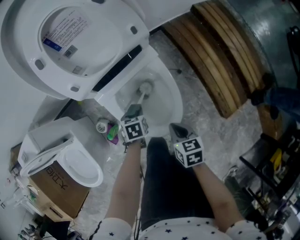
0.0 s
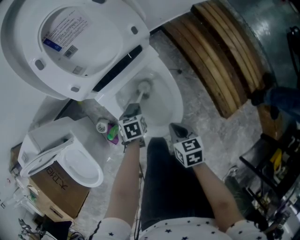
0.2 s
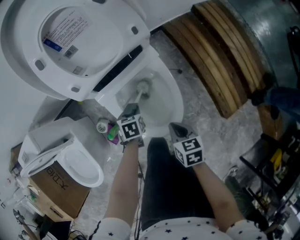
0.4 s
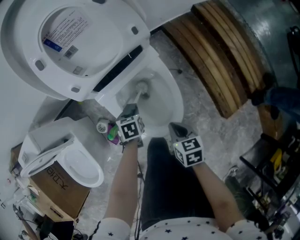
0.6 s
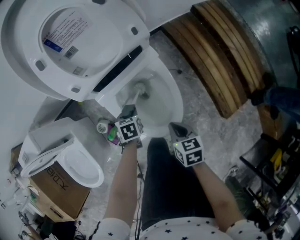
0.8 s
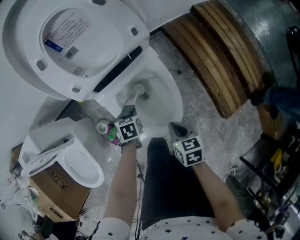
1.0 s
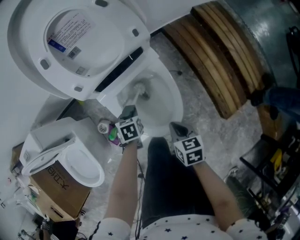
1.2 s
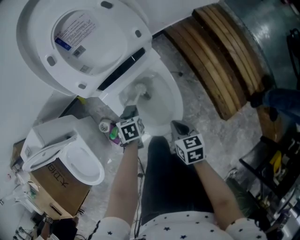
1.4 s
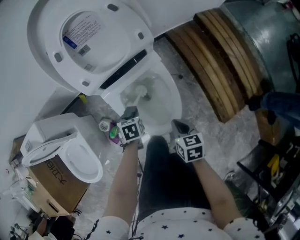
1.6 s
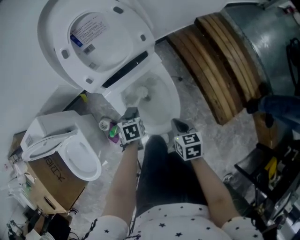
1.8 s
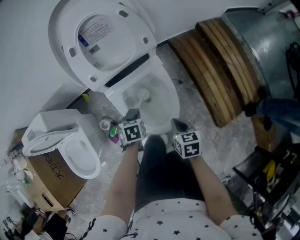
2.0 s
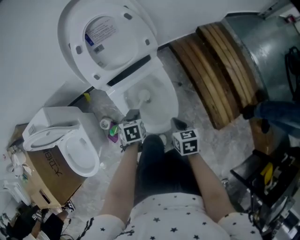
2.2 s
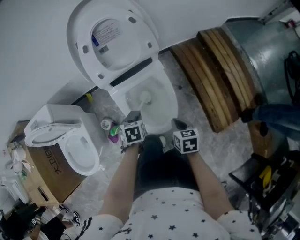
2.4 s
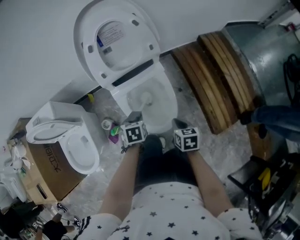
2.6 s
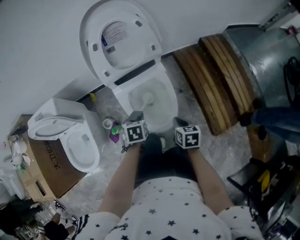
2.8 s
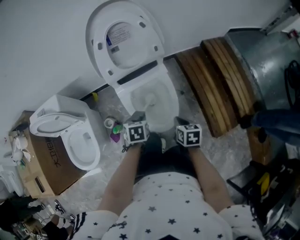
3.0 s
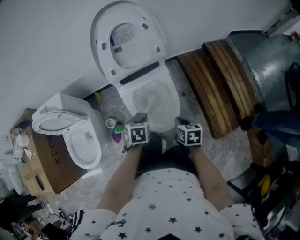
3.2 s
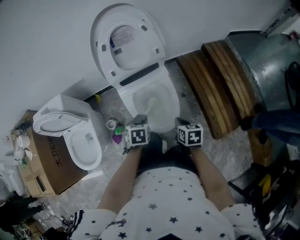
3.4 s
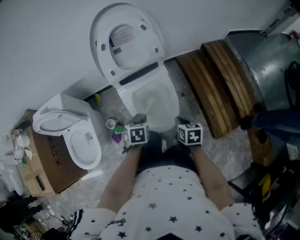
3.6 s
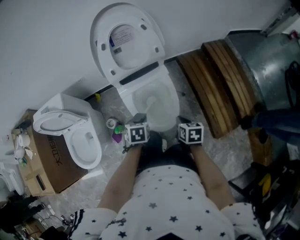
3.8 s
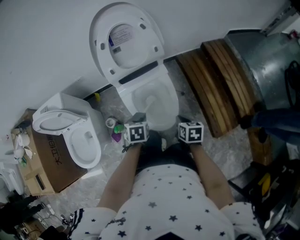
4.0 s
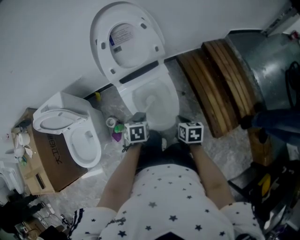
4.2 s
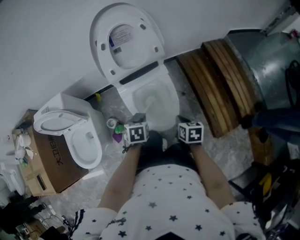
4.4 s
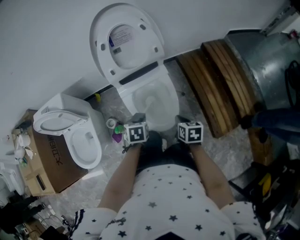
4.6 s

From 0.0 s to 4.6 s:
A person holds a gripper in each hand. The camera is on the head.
From 0.0 s to 1.6 s: The left gripper is displaced upward by some 5 cm.
From 1.6 s to 3.0 s: The right gripper travels upward by roughly 5 cm; the left gripper travels upward and backward by about 20 cm.
From 3.0 s to 4.6 s: The grippers stay close to where they were, moving slightly.

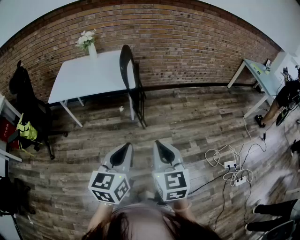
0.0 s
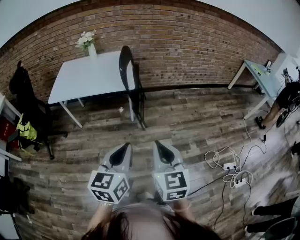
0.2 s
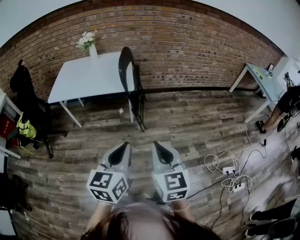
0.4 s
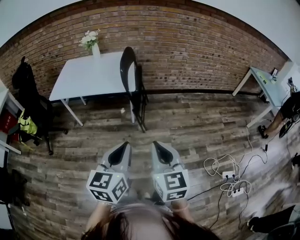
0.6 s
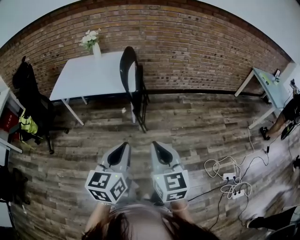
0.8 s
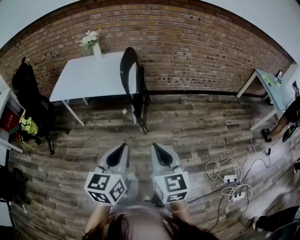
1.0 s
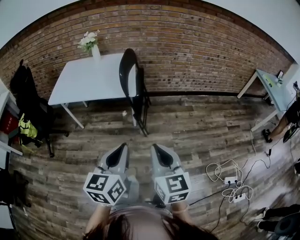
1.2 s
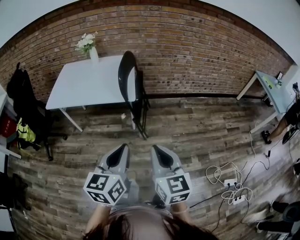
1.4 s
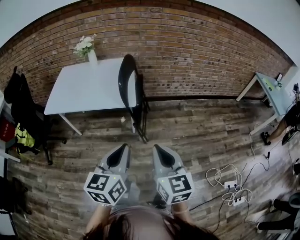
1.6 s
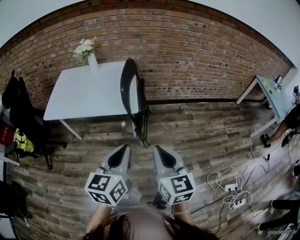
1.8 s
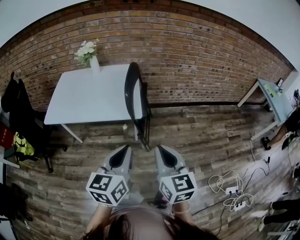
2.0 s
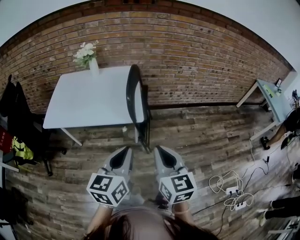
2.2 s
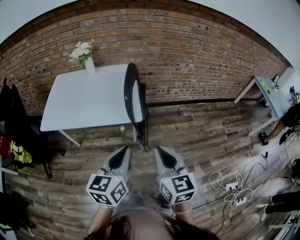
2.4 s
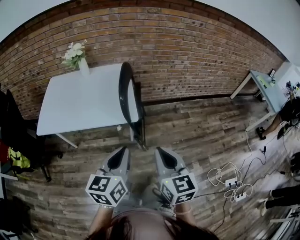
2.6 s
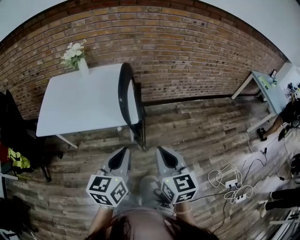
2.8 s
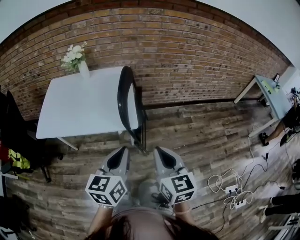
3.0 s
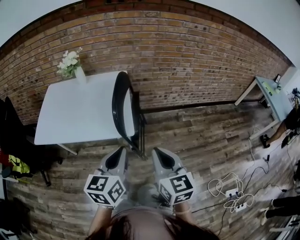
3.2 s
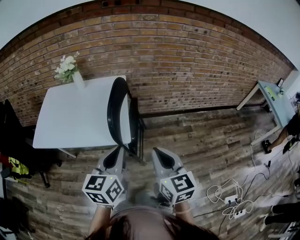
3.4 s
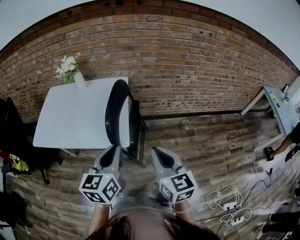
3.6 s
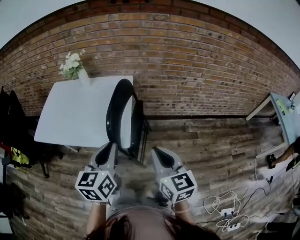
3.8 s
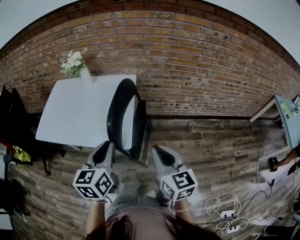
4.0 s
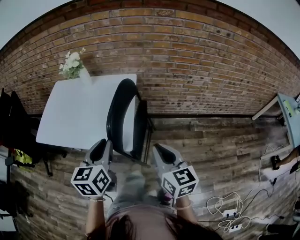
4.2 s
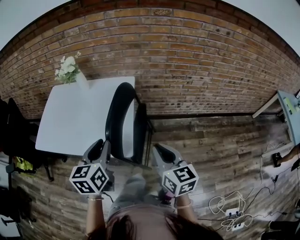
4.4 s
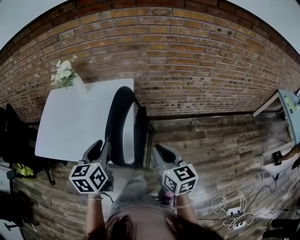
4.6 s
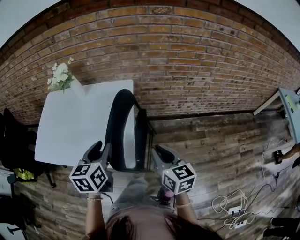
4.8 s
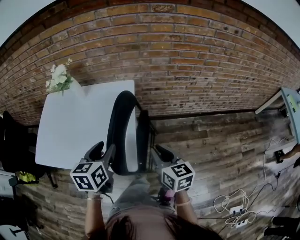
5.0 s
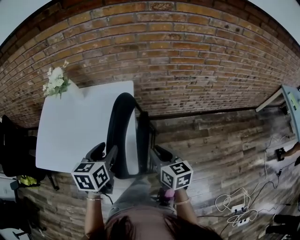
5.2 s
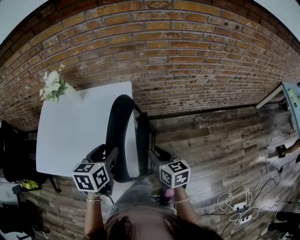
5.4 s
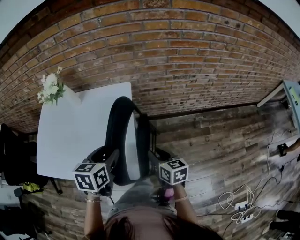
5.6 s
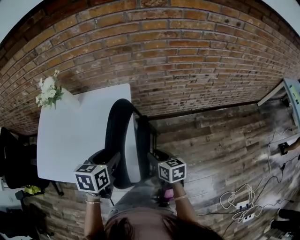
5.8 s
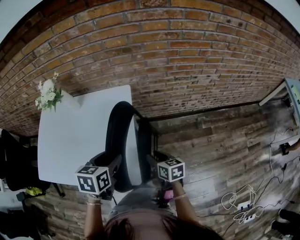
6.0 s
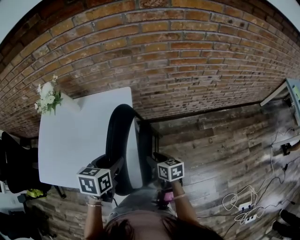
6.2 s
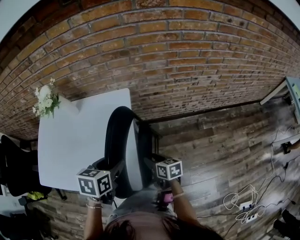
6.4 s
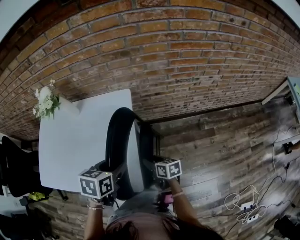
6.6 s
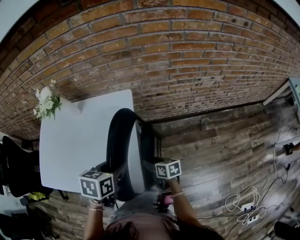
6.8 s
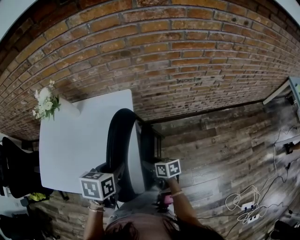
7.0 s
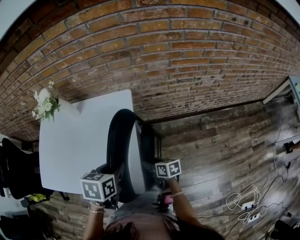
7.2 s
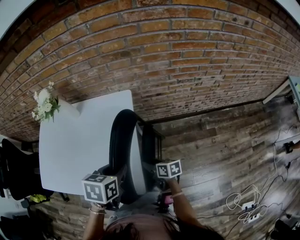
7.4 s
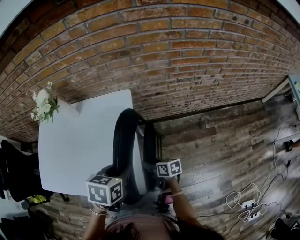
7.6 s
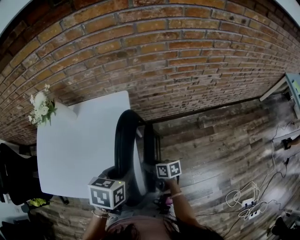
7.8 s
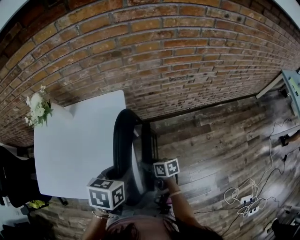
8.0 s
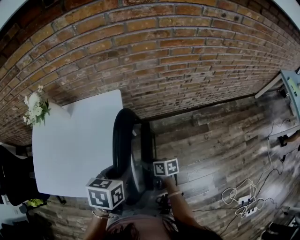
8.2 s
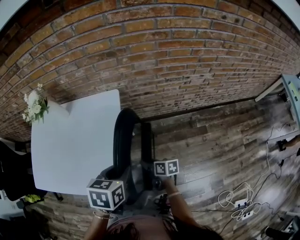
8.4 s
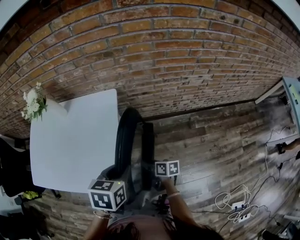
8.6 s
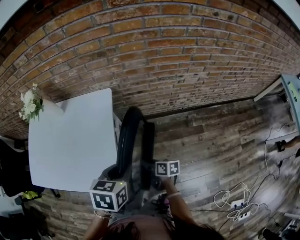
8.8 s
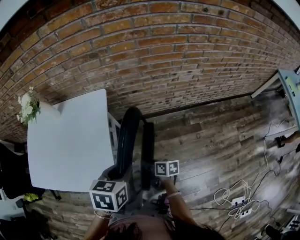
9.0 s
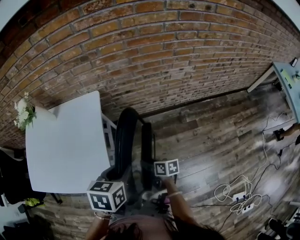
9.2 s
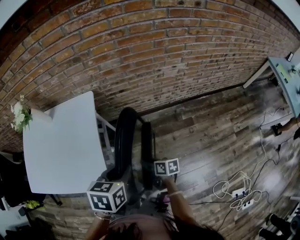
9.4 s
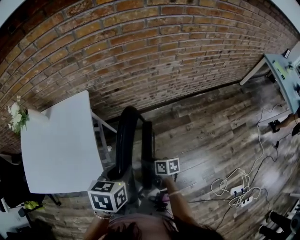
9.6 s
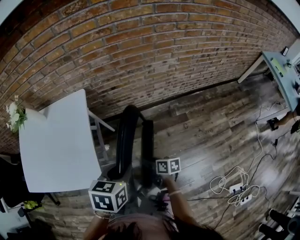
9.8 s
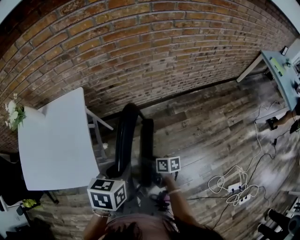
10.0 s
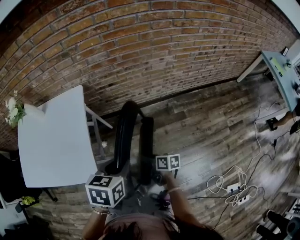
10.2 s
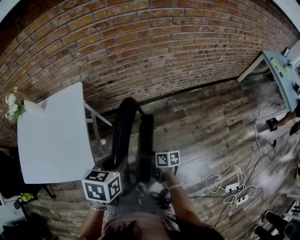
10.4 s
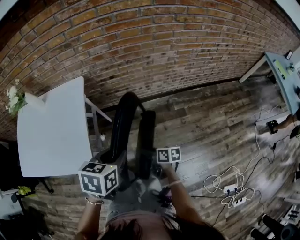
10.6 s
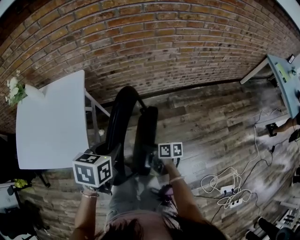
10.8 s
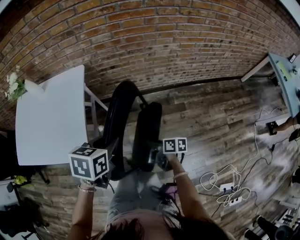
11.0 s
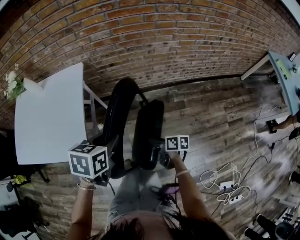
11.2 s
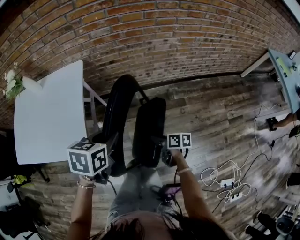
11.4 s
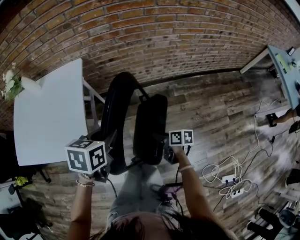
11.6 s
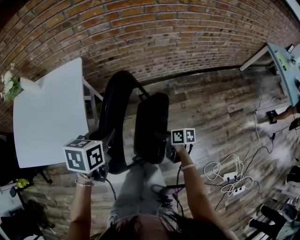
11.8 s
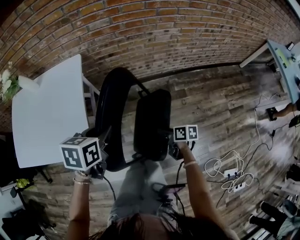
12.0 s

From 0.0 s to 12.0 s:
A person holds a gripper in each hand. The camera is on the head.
From 0.0 s to 1.6 s: The grippers both shift forward by some 15 cm.
From 1.6 s to 3.0 s: Both grippers travel together forward, about 15 cm.
From 3.0 s to 4.4 s: The grippers both shift forward by some 20 cm. The left gripper rotates roughly 20 degrees, and opens up.
From 4.4 s to 6.0 s: The left gripper shifts some 15 cm forward and downward, turns by roughly 30 degrees, and opens up, while the right gripper is displaced downward and forward by roughly 25 cm, rotates approximately 30 degrees, and opens up.
From 6.0 s to 7.6 s: The left gripper closes up, while the right gripper travels downward by about 10 cm, and changes its angle by roughly 20 degrees.
From 7.6 s to 9.0 s: The two grippers go about 10 cm to the right.
From 9.0 s to 10.4 s: The grippers both shift to the right and backward by about 10 cm.
From 10.4 s to 12.0 s: The left gripper goes approximately 5 cm to the left; the right gripper is displaced to the right by some 5 cm.

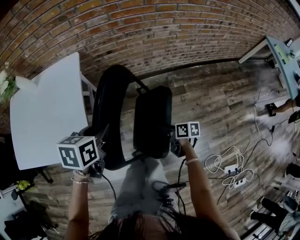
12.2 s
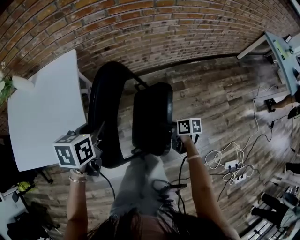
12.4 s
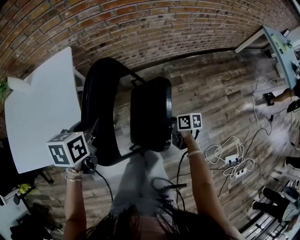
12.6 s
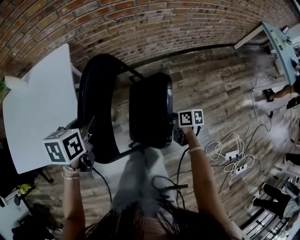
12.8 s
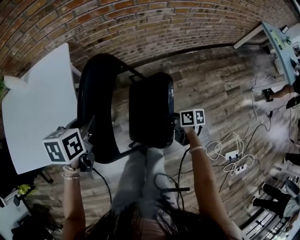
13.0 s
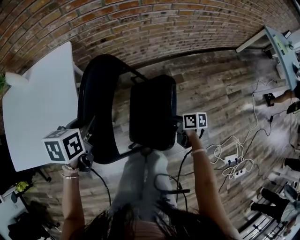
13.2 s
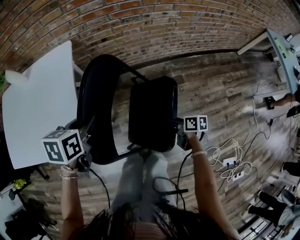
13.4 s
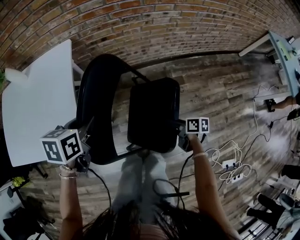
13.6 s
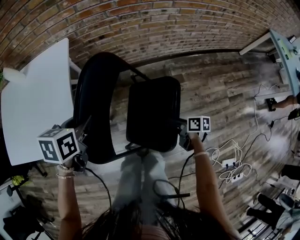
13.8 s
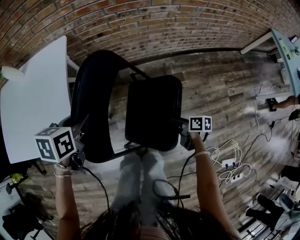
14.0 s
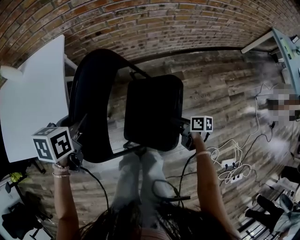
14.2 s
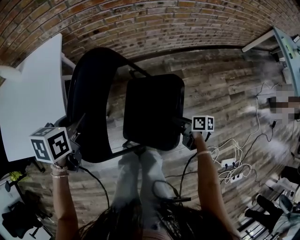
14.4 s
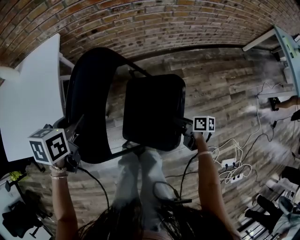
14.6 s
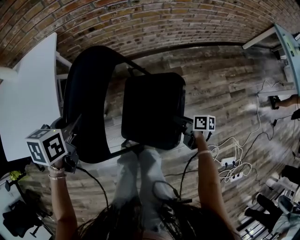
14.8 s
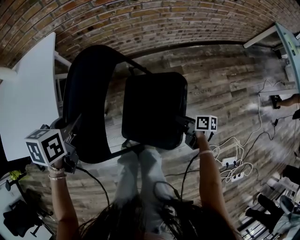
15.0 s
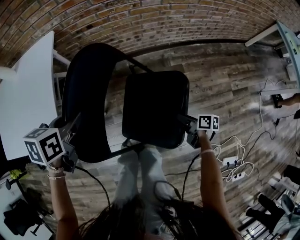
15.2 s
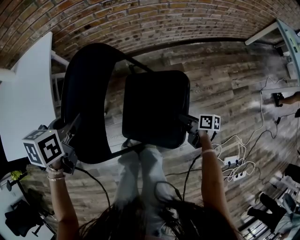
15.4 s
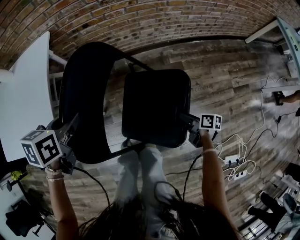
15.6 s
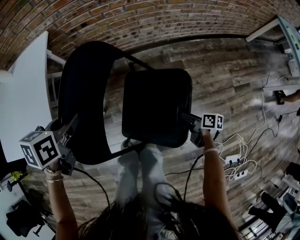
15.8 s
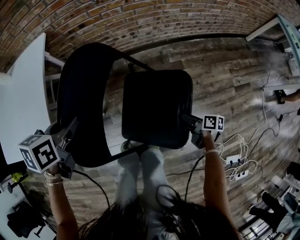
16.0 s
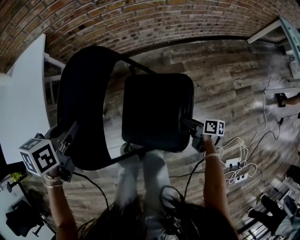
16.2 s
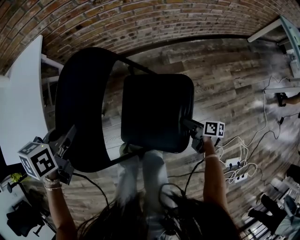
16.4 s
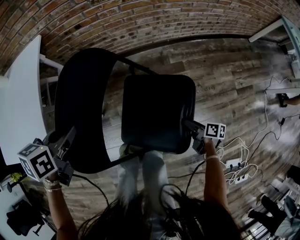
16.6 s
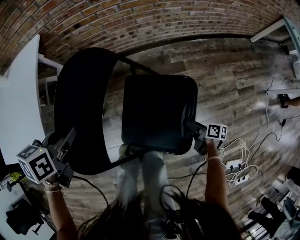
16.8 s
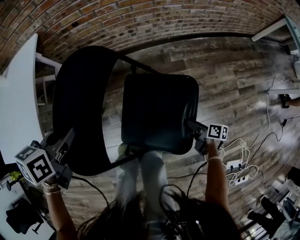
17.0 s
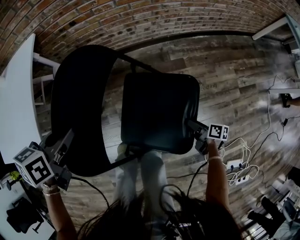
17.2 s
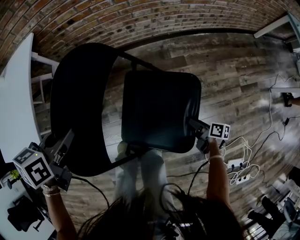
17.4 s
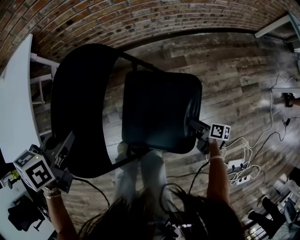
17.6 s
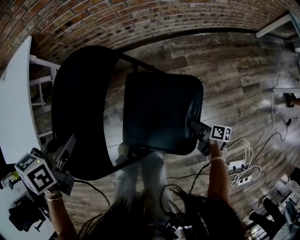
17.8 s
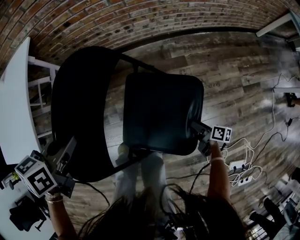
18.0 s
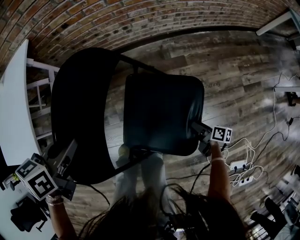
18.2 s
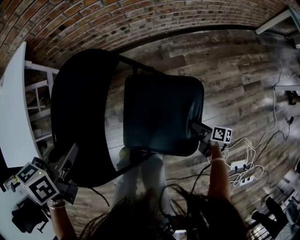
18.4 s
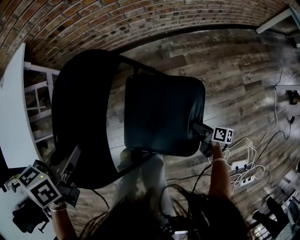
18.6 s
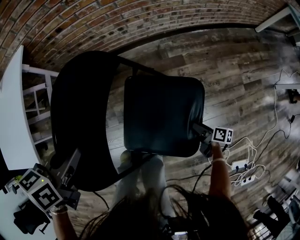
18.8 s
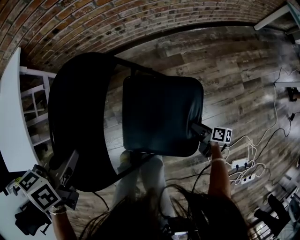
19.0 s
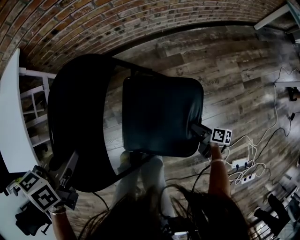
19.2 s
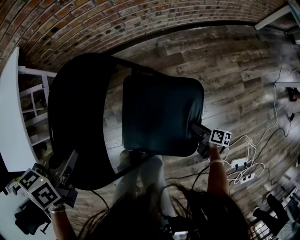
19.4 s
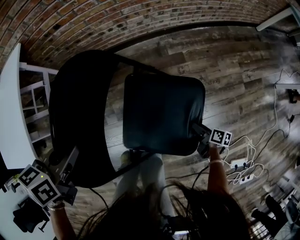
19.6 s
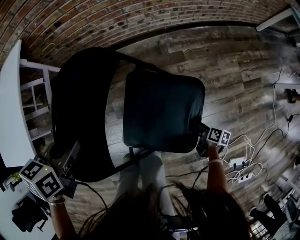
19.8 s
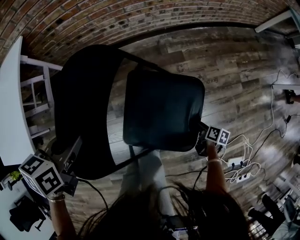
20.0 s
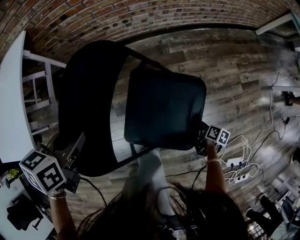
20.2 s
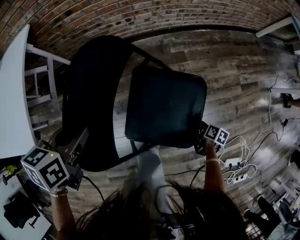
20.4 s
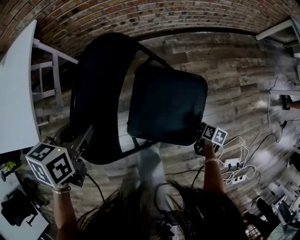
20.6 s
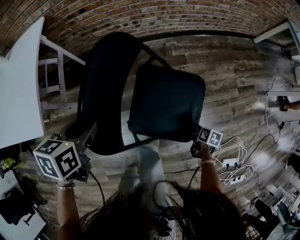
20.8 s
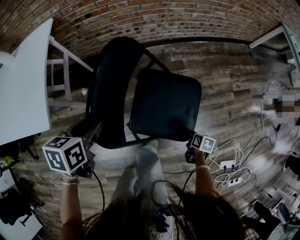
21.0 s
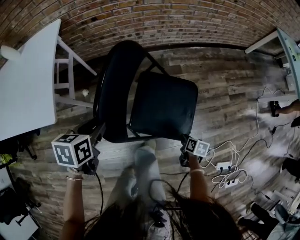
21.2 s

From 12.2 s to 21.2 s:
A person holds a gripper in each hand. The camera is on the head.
From 12.2 s to 13.8 s: The right gripper shifts about 5 cm to the right.
From 13.8 s to 15.2 s: The right gripper goes approximately 10 cm to the right and downward. Meanwhile the left gripper ends up about 5 cm from where it was.
From 15.2 s to 16.6 s: The right gripper is displaced to the right and downward by about 10 cm.
From 16.6 s to 18.2 s: The left gripper is displaced to the right by some 5 cm. Meanwhile the right gripper goes roughly 10 cm downward and to the right.
From 18.2 s to 19.8 s: The right gripper changes place by some 5 cm.
From 19.8 s to 21.2 s: The right gripper heads backward, upward and to the left, covering approximately 15 cm, rotates roughly 20 degrees, and closes, while the left gripper heads backward, covering roughly 10 cm.
